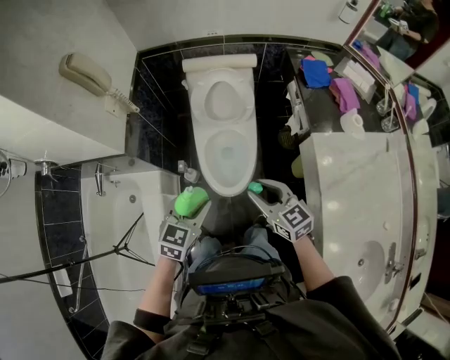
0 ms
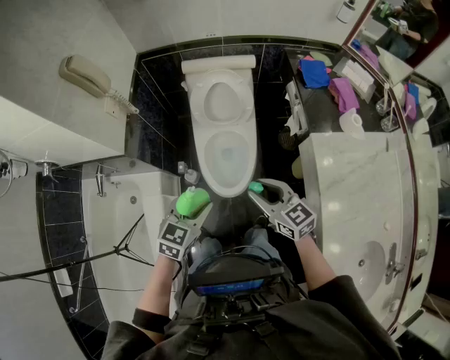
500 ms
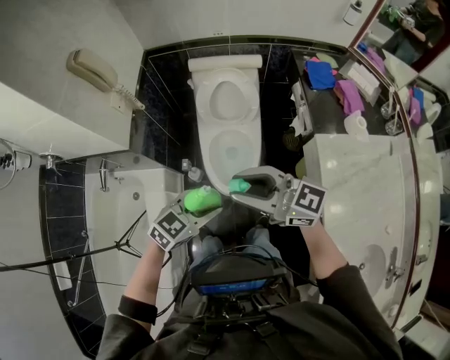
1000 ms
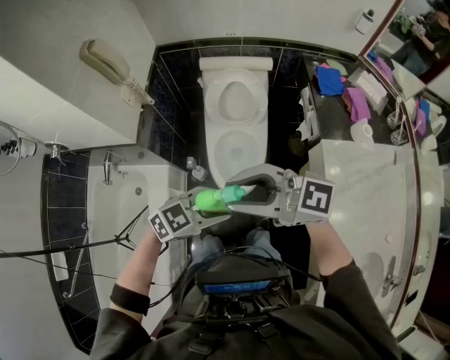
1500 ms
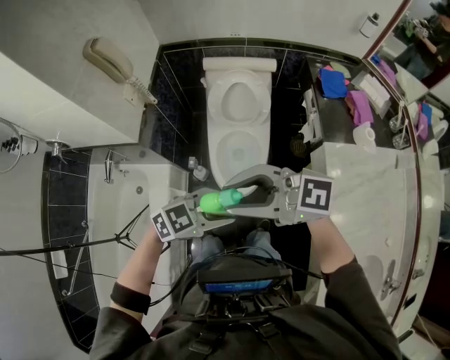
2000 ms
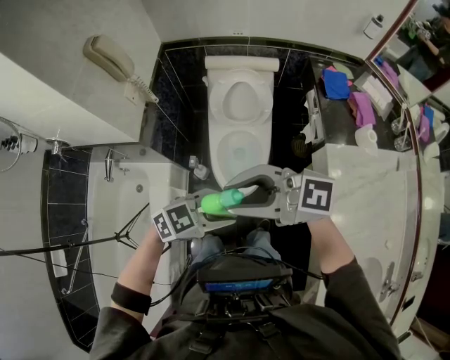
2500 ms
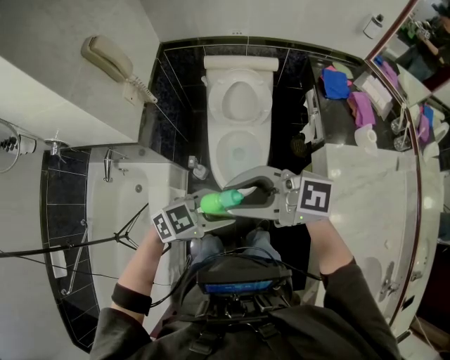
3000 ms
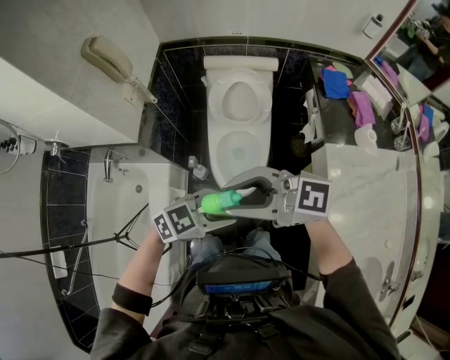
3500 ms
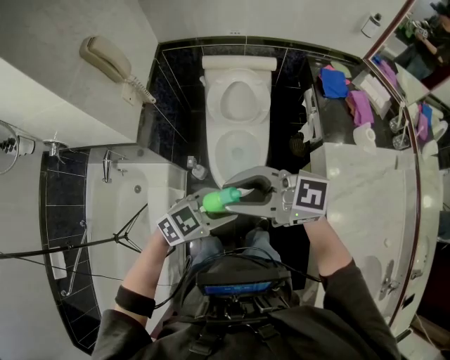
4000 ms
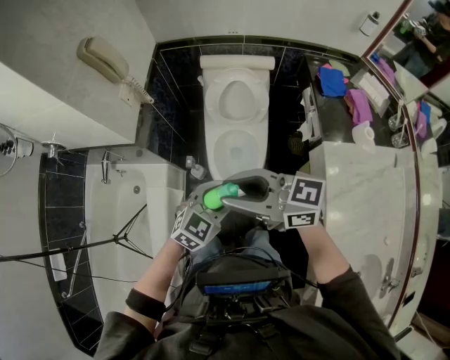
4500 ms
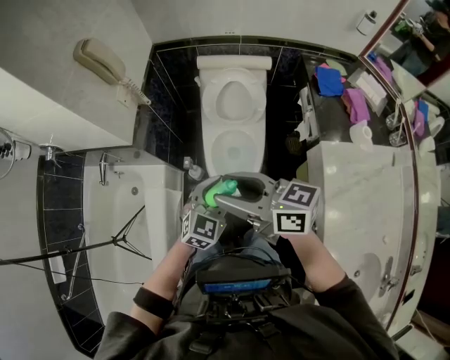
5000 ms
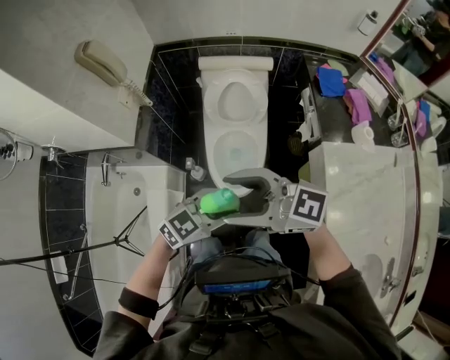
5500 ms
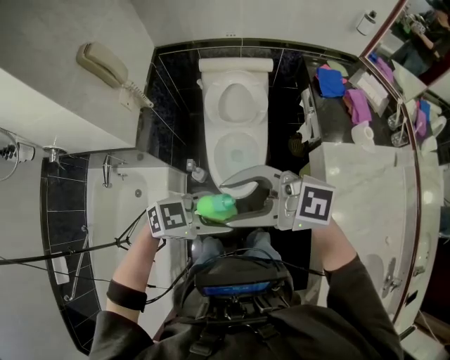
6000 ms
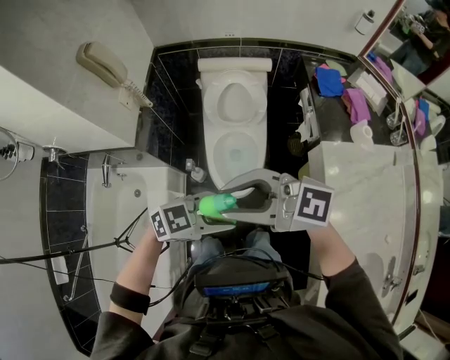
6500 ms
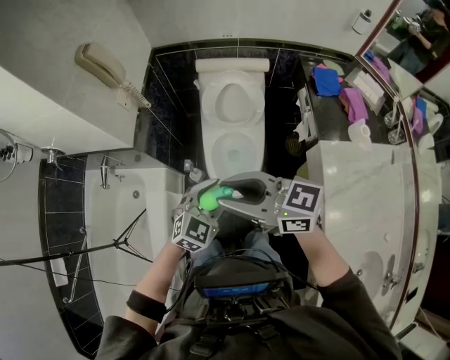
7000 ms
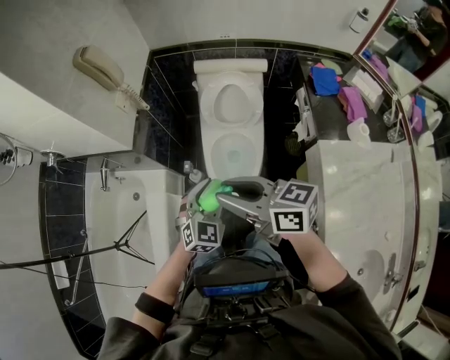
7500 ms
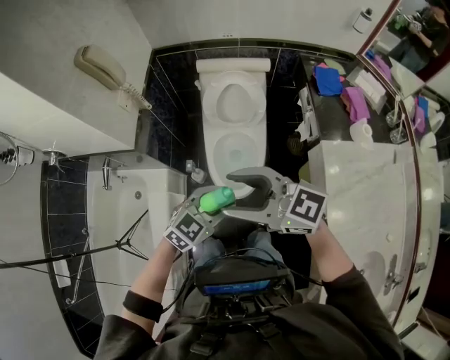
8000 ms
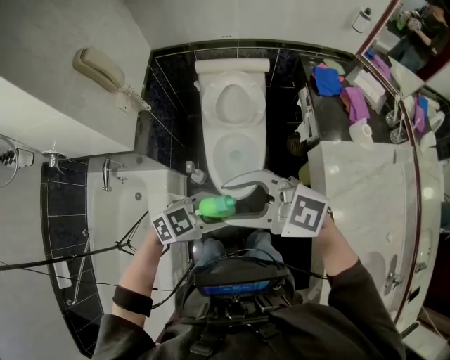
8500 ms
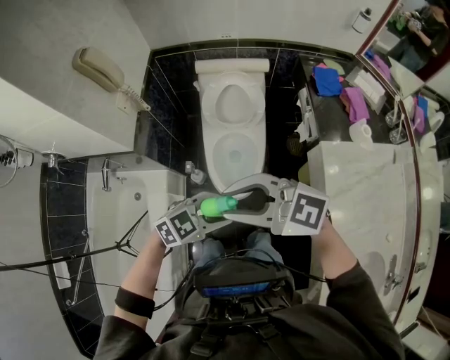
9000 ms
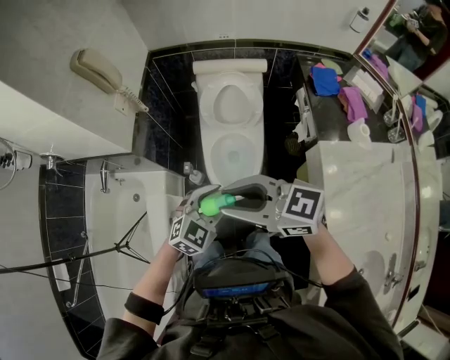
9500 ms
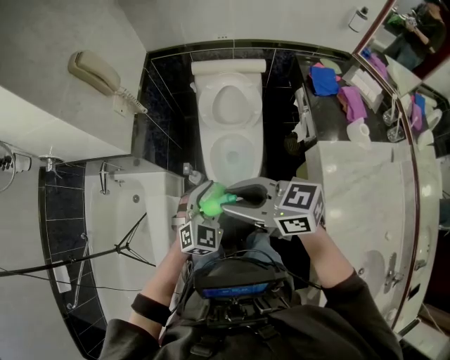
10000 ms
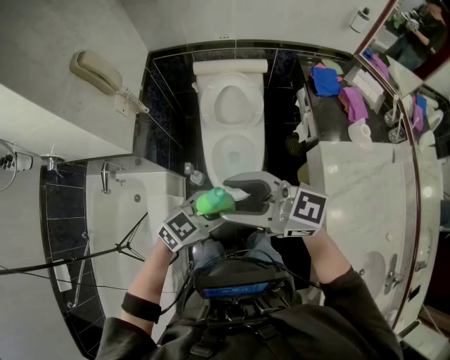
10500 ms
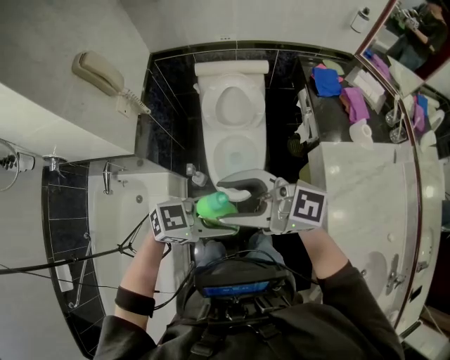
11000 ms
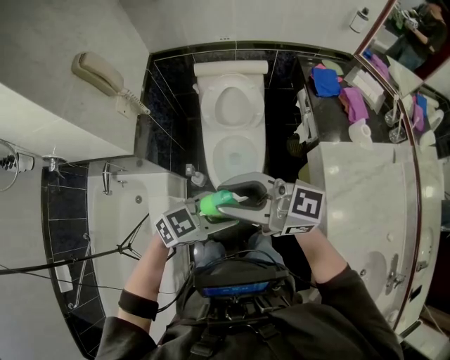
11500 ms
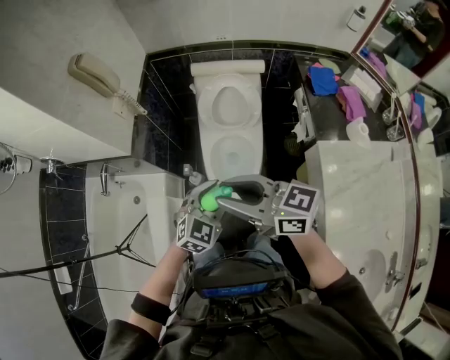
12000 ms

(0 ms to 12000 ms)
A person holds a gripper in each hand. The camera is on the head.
0 ms - 2000 ms: The left gripper ends up roughly 10 cm from where it was, and changes its angle by approximately 40 degrees, while the right gripper is displaced upward by some 20 cm, and changes its angle by some 60 degrees.
2000 ms - 4000 ms: The grippers move only a little.
6000 ms - 8000 ms: The right gripper turns by some 20 degrees; the left gripper rotates approximately 30 degrees.
8000 ms - 10000 ms: The left gripper shifts by about 5 cm, and swivels about 30 degrees, while the right gripper changes its angle by some 20 degrees, and closes up.
10000 ms - 12000 ms: The right gripper reaches about 10 cm upward, then returns. The left gripper goes upward and returns, some 10 cm each way.

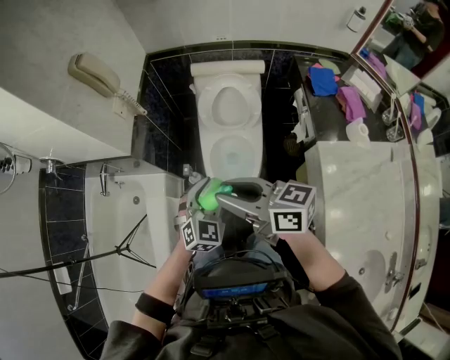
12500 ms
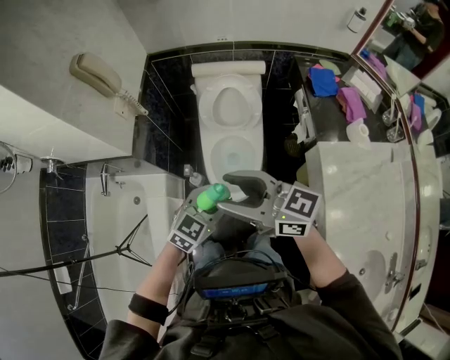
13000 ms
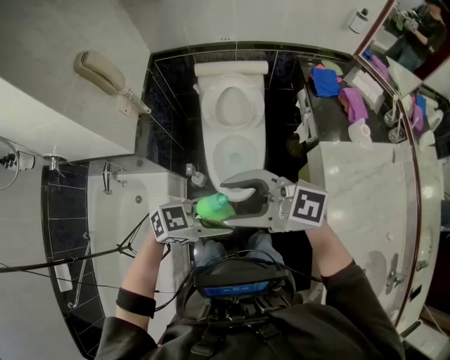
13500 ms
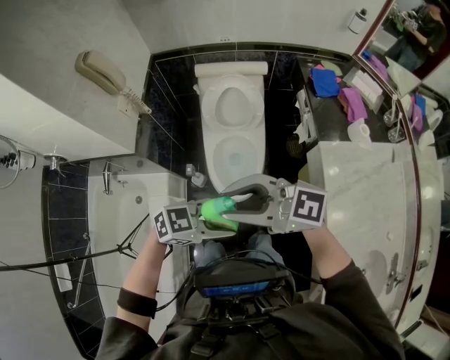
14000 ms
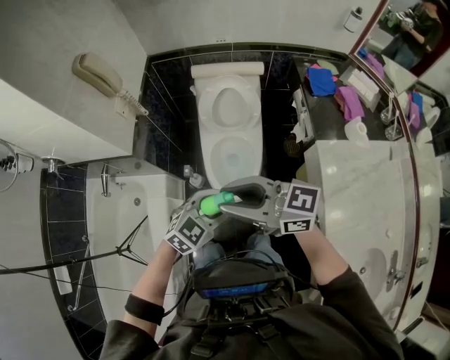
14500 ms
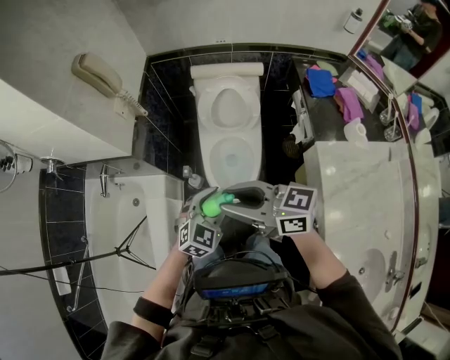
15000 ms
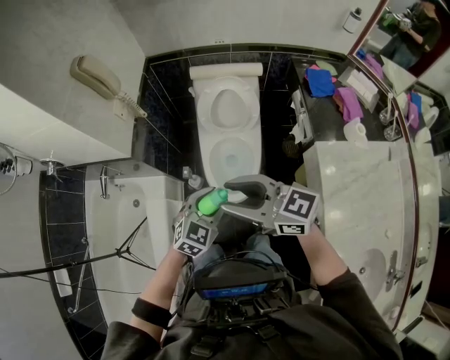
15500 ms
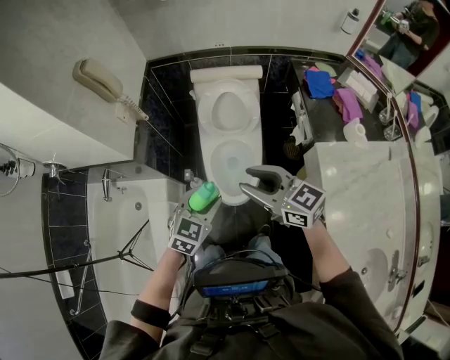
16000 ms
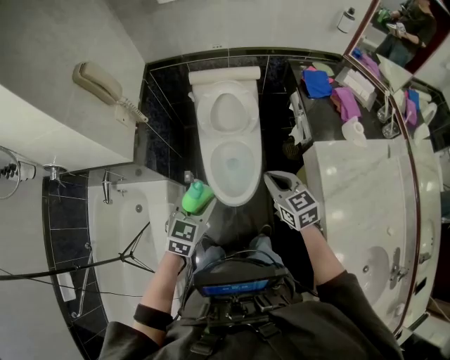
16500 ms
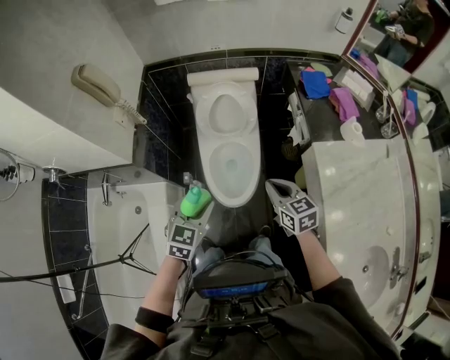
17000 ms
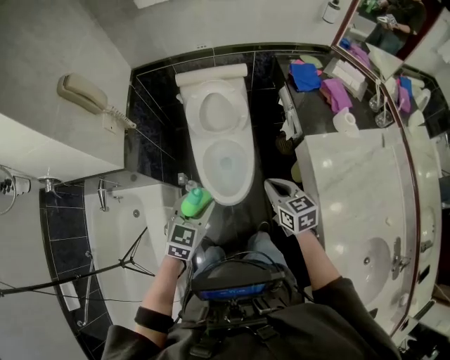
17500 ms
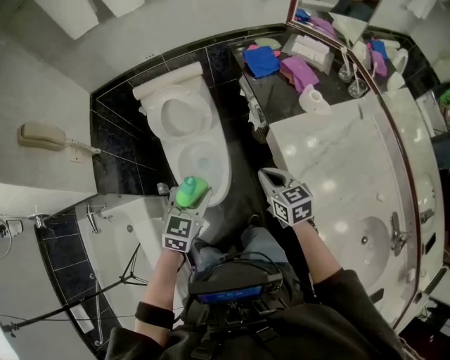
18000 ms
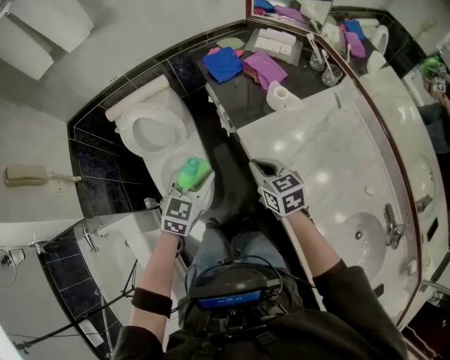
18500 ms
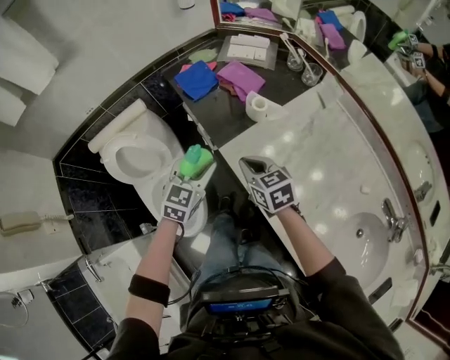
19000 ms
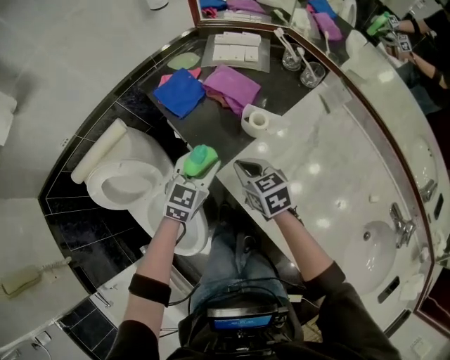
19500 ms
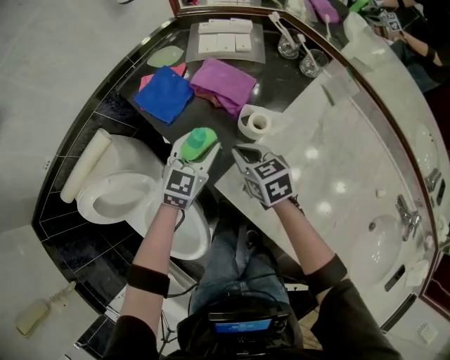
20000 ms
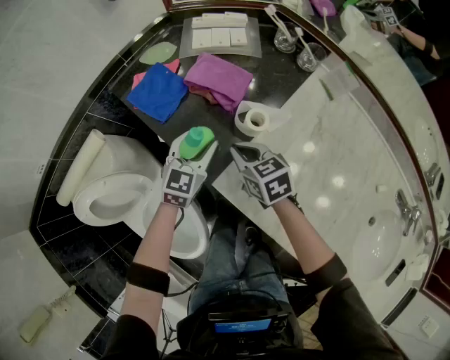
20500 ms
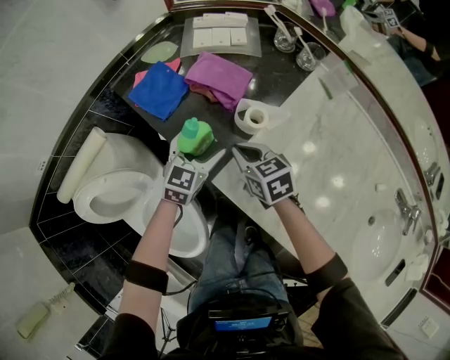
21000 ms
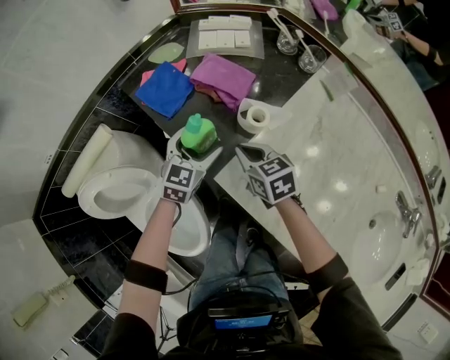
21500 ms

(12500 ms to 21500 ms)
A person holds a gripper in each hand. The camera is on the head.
12500 ms - 14500 ms: The left gripper changes its angle by roughly 30 degrees. Meanwhile the right gripper turns by some 20 degrees, and opens and closes again.
14500 ms - 17000 ms: The left gripper moves some 5 cm, and changes its angle by roughly 30 degrees. Meanwhile the right gripper shifts approximately 20 cm downward, tips its fingers downward by about 30 degrees, and closes.
17000 ms - 19500 ms: The pair of grippers is taken approximately 50 cm. The right gripper changes its angle by approximately 30 degrees. Meanwhile the left gripper rotates approximately 40 degrees.
19500 ms - 21500 ms: The left gripper travels forward and downward by roughly 10 cm, and opens up. The right gripper travels forward by roughly 5 cm.

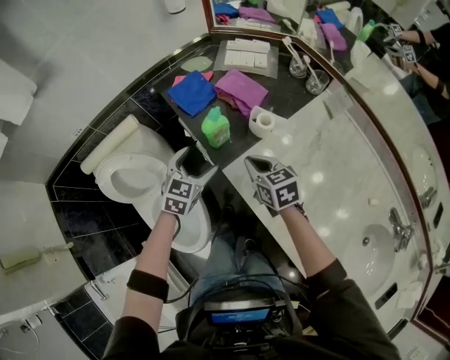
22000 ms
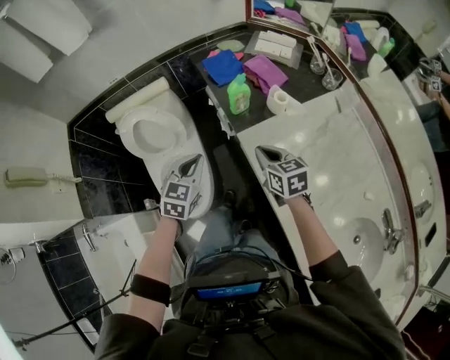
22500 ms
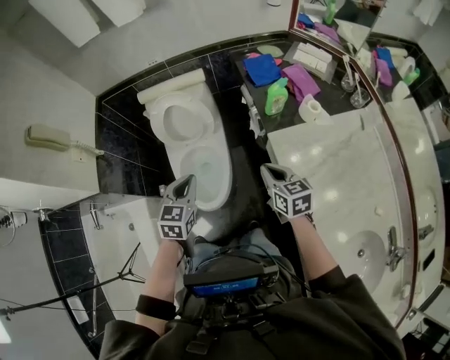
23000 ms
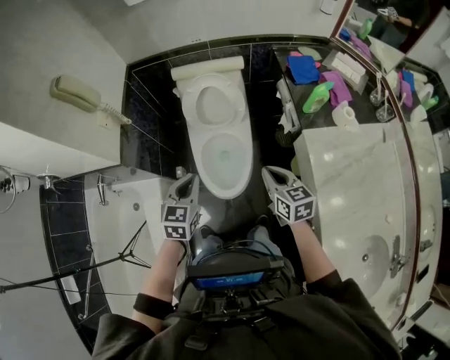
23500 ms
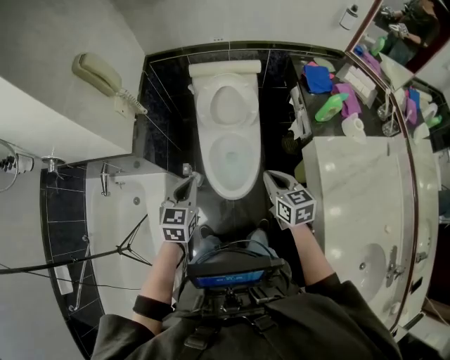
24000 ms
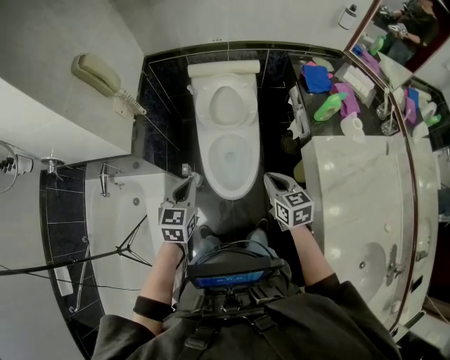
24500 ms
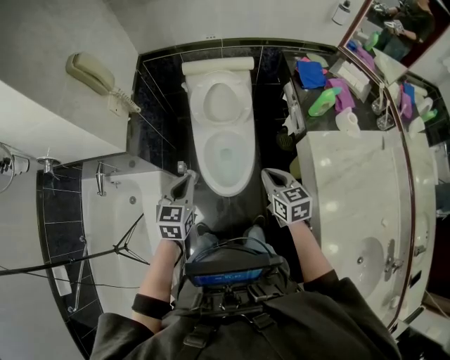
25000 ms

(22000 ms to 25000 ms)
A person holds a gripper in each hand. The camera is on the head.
22000 ms - 23500 ms: The right gripper ends up about 35 cm from where it was, and changes its angle by roughly 20 degrees. The left gripper changes place by roughly 50 cm, rotates approximately 40 degrees, and closes up.
23500 ms - 25000 ms: The left gripper shifts approximately 5 cm to the left.

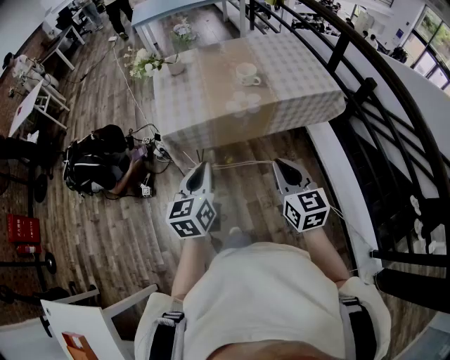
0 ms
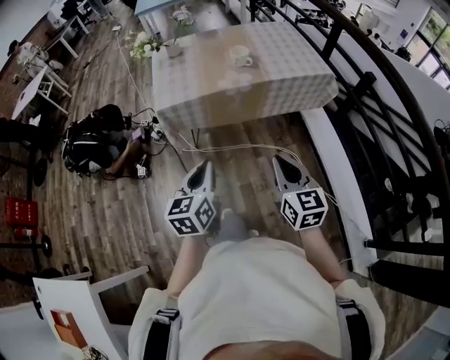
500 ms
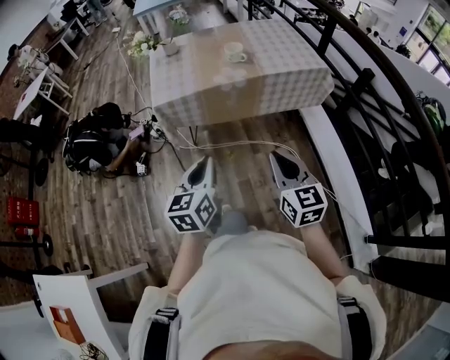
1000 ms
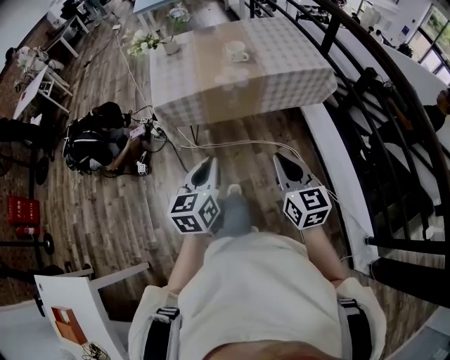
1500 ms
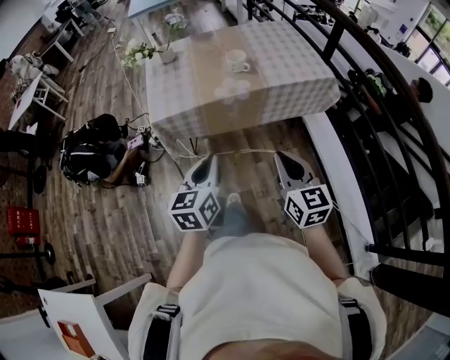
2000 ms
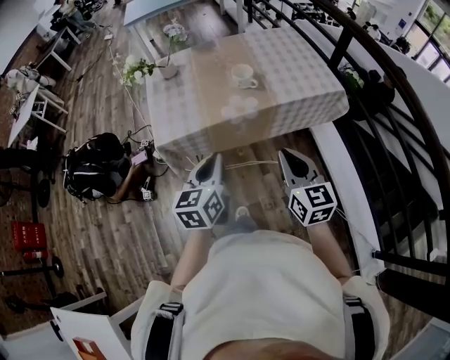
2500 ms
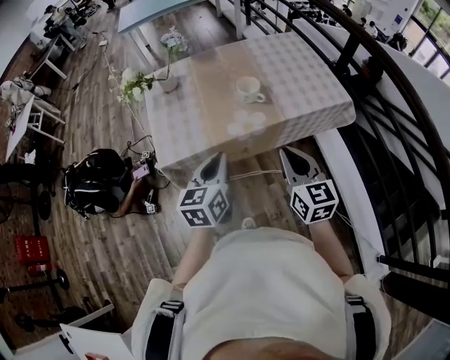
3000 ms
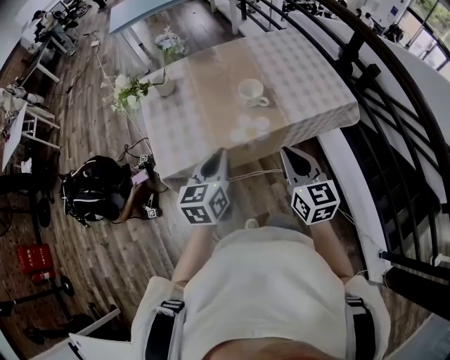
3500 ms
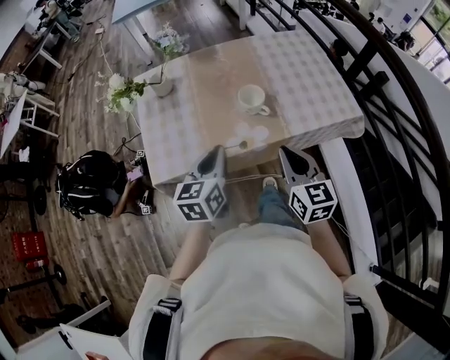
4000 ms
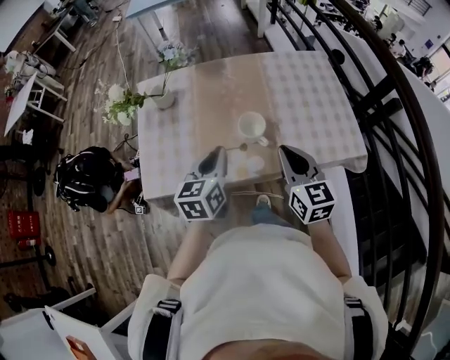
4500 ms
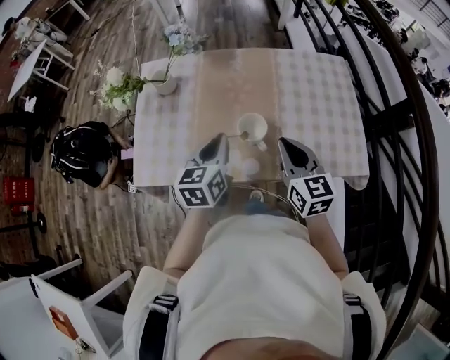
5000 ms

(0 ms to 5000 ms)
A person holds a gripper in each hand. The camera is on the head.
0 ms - 2500 ms: The right gripper moves forward, some 5 cm; the left gripper shifts roughly 10 cm forward and to the right.
2500 ms - 5000 ms: Both grippers move forward, some 35 cm.
